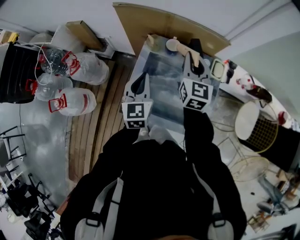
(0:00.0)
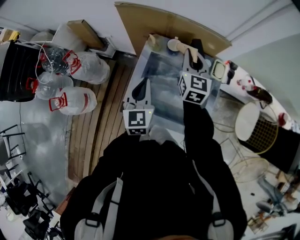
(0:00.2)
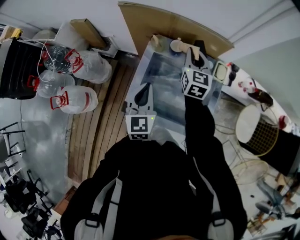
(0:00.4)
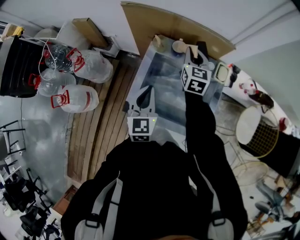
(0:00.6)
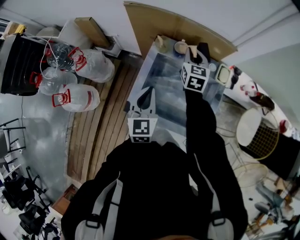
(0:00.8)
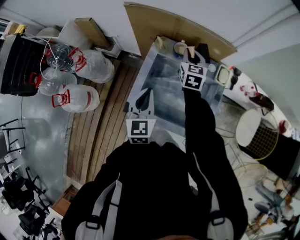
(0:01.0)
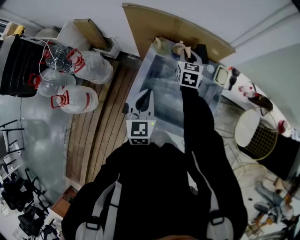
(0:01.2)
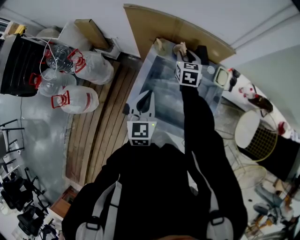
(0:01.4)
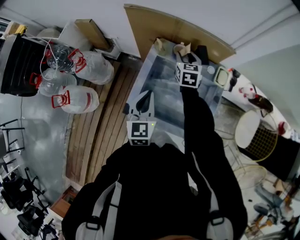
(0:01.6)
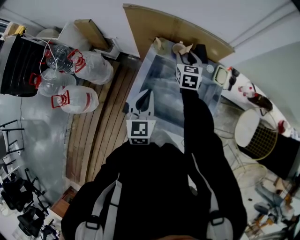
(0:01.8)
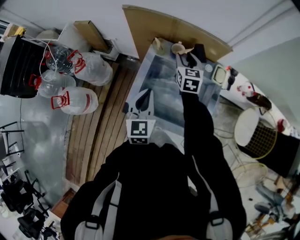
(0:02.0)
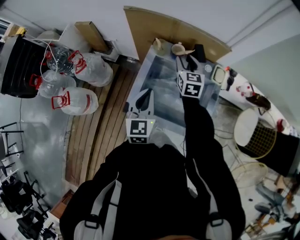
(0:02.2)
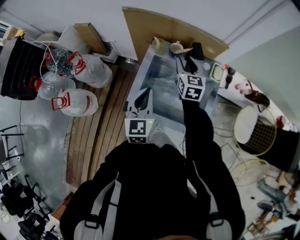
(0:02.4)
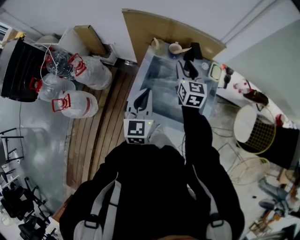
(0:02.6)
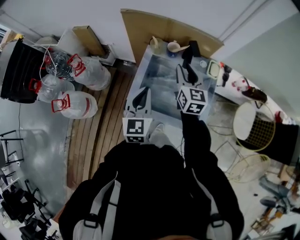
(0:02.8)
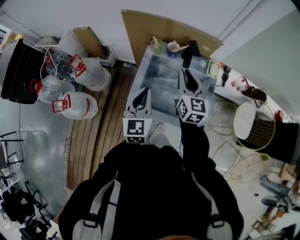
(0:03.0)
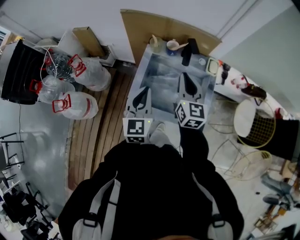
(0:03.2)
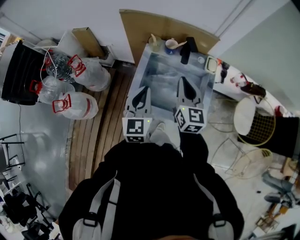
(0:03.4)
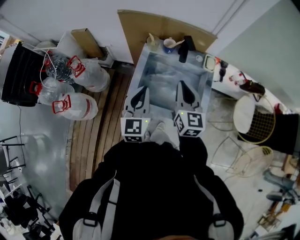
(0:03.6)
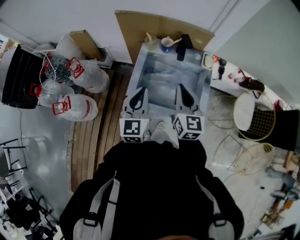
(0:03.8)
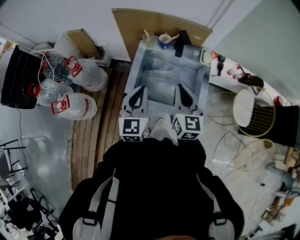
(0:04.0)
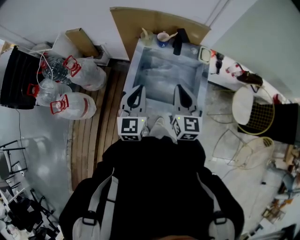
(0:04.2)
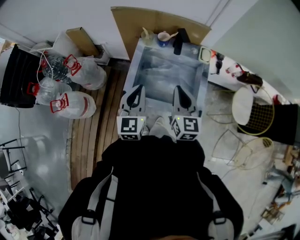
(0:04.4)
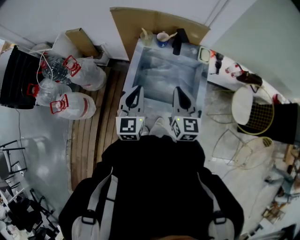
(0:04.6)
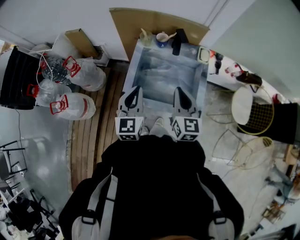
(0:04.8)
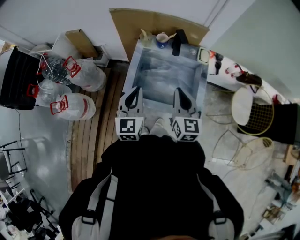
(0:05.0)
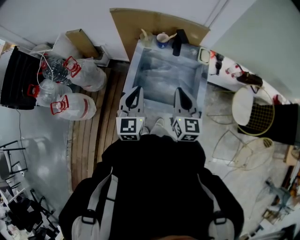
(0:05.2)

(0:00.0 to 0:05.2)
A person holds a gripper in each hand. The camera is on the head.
0:00.0 - 0:01.8: The right gripper shifts about 10 cm downward and forward, and opens, while the left gripper moves backward, about 5 cm.
0:01.8 - 0:03.4: The right gripper travels backward and upward by approximately 25 cm, swivels approximately 20 degrees, and closes up. Meanwhile the left gripper shifts some 10 cm backward and upward.
0:03.4 - 0:05.2: The right gripper heads backward, covering approximately 10 cm.

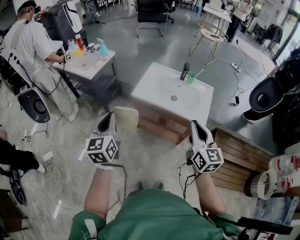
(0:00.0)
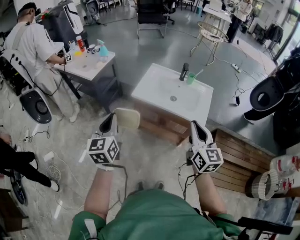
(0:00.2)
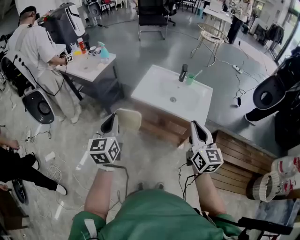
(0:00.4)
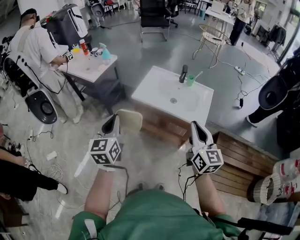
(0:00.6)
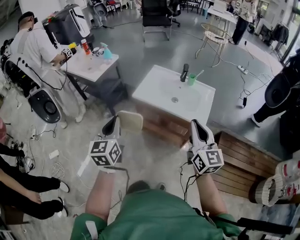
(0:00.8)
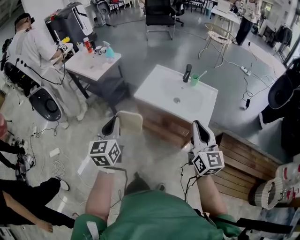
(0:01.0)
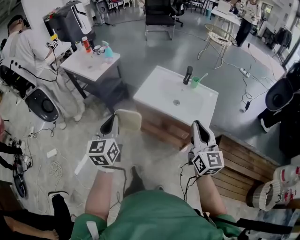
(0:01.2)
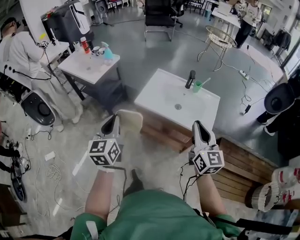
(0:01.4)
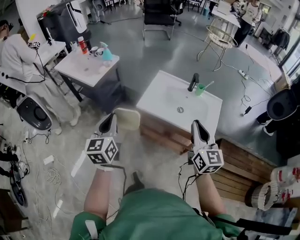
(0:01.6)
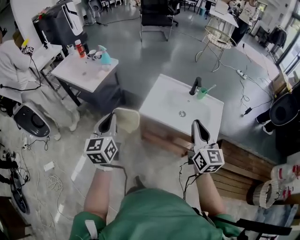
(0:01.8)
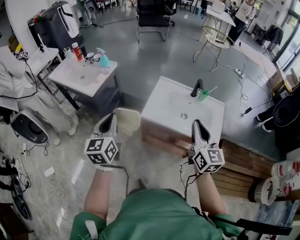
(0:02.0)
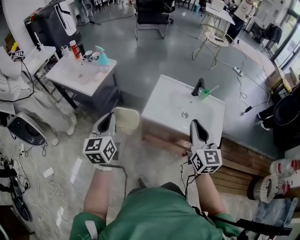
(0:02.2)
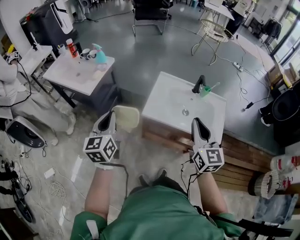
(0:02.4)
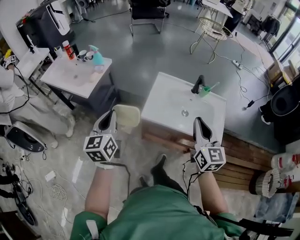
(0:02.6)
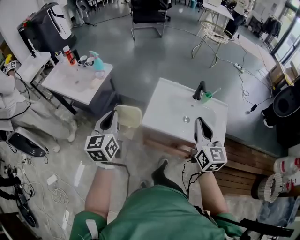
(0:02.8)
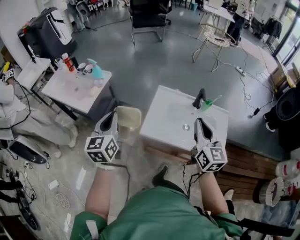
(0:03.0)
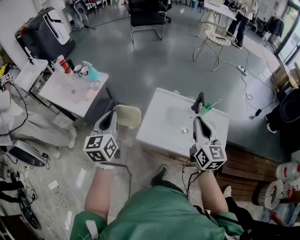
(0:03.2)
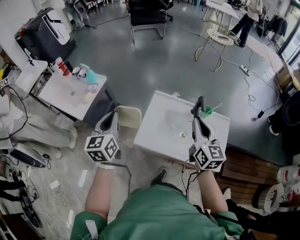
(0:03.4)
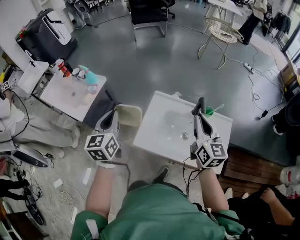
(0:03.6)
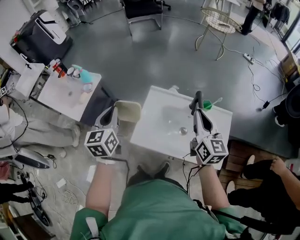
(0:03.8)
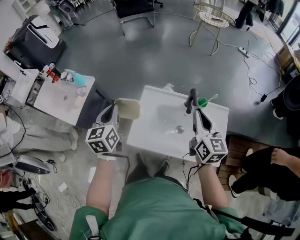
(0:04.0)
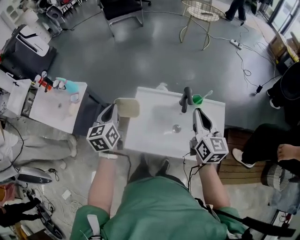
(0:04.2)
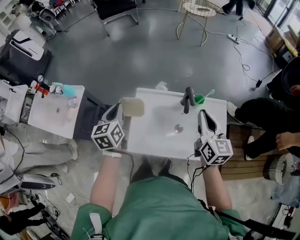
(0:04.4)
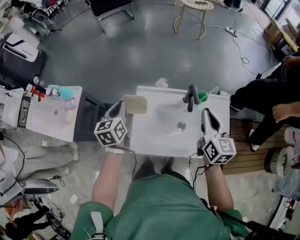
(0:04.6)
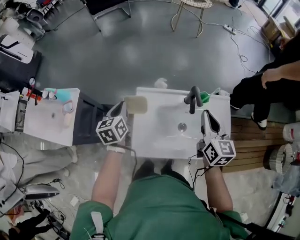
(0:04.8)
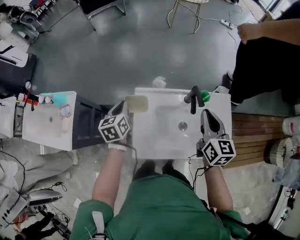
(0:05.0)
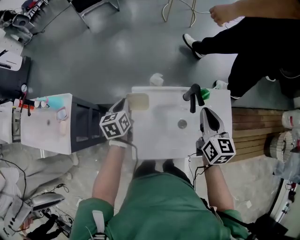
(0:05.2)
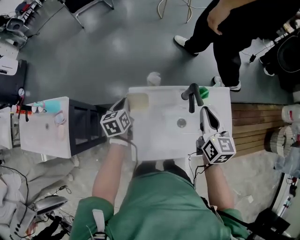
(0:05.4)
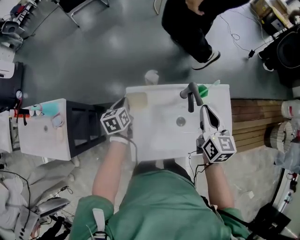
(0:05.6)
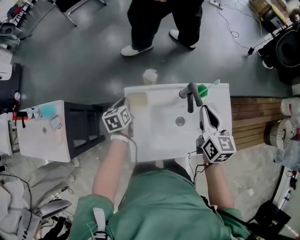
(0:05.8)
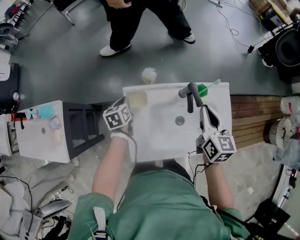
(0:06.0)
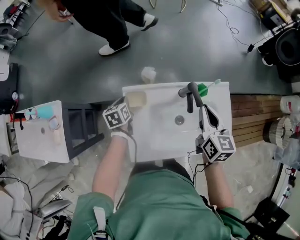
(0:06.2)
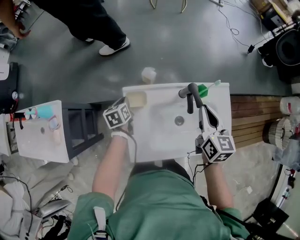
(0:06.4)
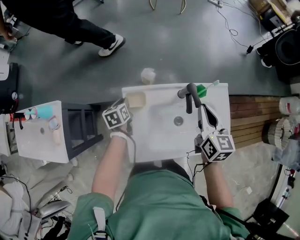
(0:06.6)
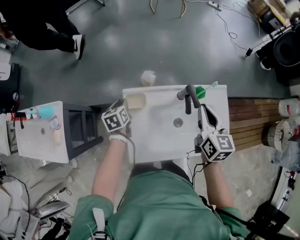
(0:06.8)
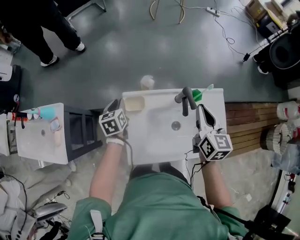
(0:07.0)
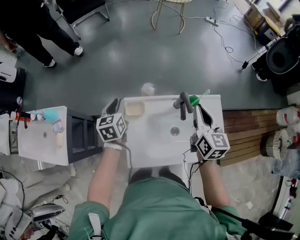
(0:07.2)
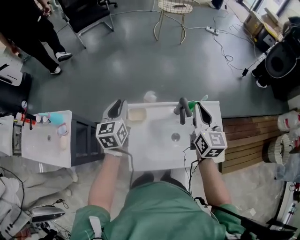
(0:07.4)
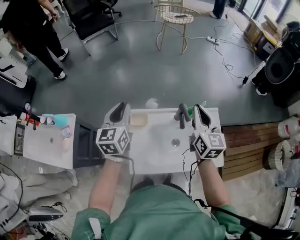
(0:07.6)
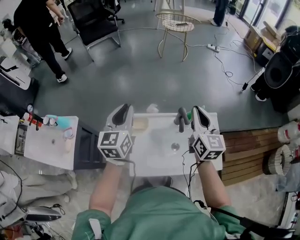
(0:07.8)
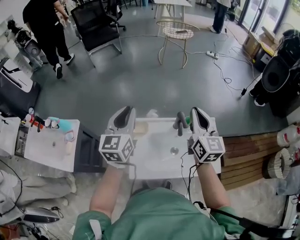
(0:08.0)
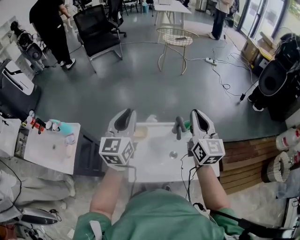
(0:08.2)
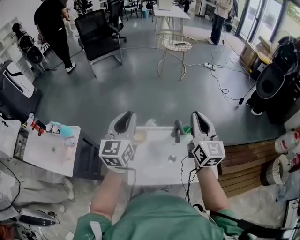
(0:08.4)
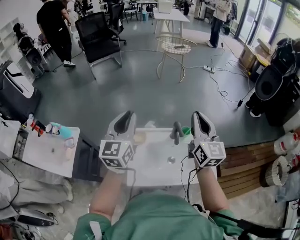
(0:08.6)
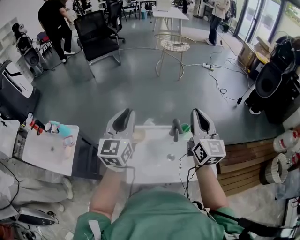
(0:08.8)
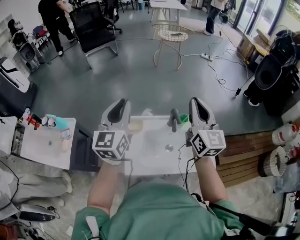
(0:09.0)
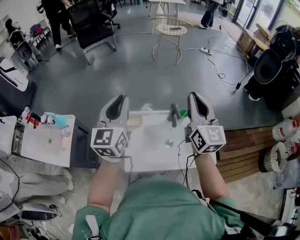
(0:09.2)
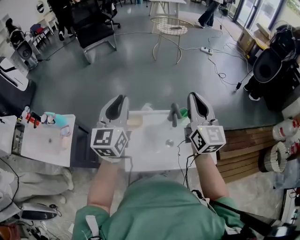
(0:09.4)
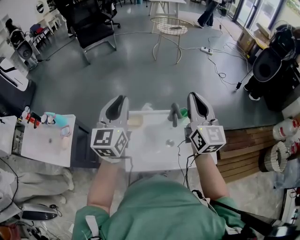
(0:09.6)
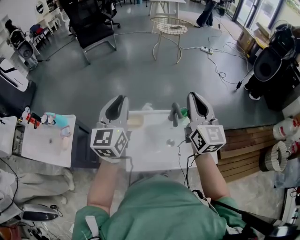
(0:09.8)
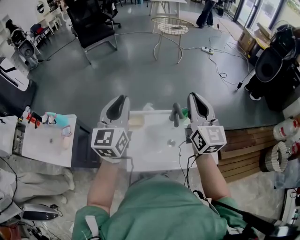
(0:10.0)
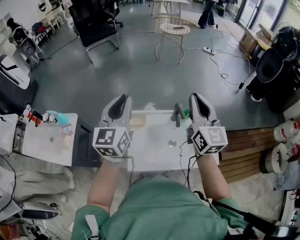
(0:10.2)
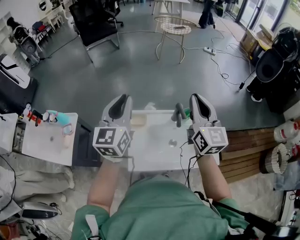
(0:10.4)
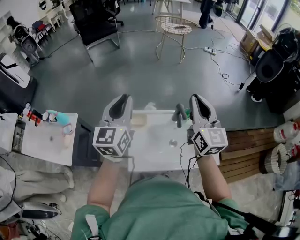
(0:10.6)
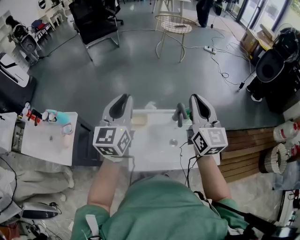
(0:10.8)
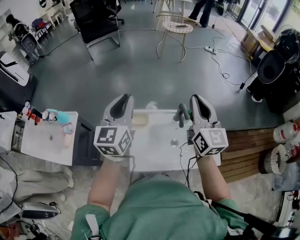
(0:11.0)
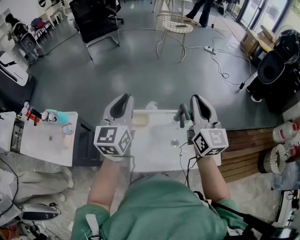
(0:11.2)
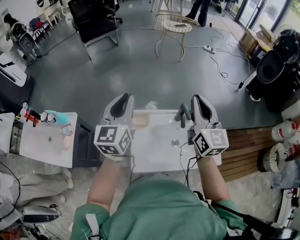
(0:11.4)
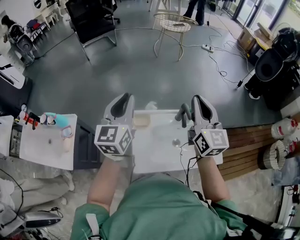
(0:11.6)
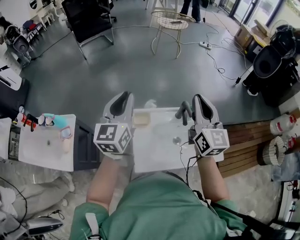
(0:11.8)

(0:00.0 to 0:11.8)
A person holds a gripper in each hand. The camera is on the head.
0:00.0 - 0:01.4: The right gripper travels forward by some 5 cm.
0:01.4 - 0:03.0: Both grippers travel together forward, roughly 30 cm.
0:03.0 - 0:04.4: The two grippers go approximately 30 cm forward and to the right.
0:04.4 - 0:06.0: The right gripper moves downward and forward, roughly 15 cm. Meanwhile the left gripper shifts roughly 30 cm downward and forward, and rotates approximately 30 degrees.
0:06.0 - 0:07.4: The right gripper heads upward, covering about 10 cm; the left gripper shifts roughly 25 cm upward, and swivels roughly 30 degrees.
0:07.4 - 0:08.8: The two grippers go some 20 cm upward and backward. The left gripper swivels approximately 20 degrees.
0:08.8 - 0:10.4: There are only small adjustments of the grippers.
0:10.4 - 0:11.8: Both grippers travel together to the left, some 5 cm.

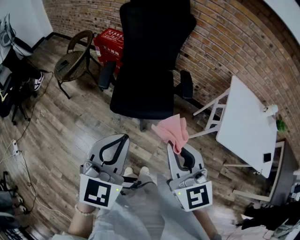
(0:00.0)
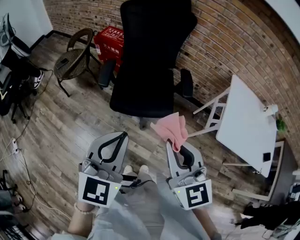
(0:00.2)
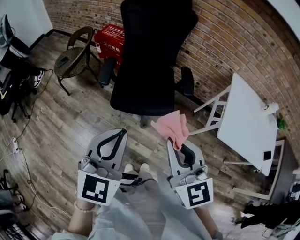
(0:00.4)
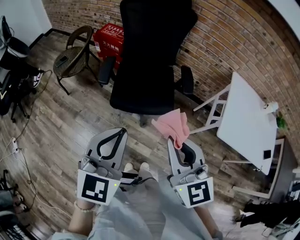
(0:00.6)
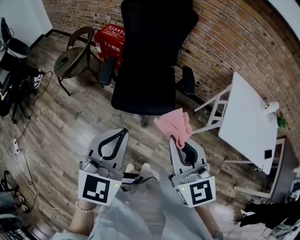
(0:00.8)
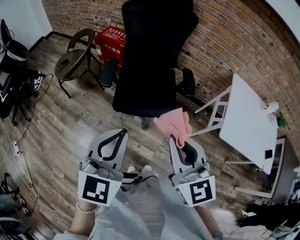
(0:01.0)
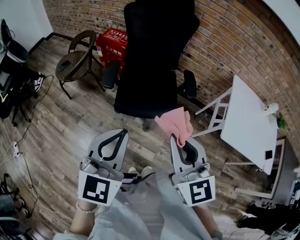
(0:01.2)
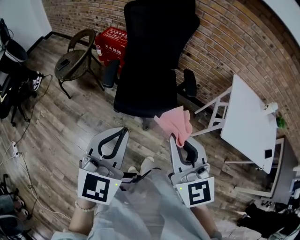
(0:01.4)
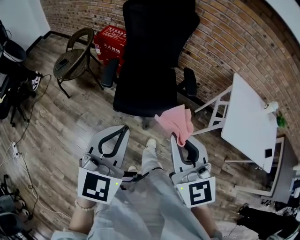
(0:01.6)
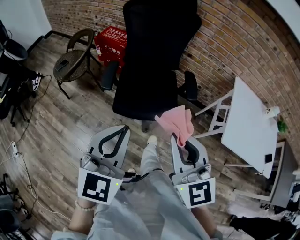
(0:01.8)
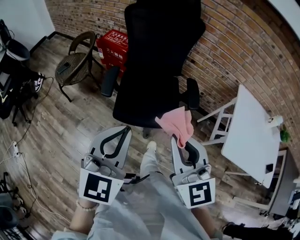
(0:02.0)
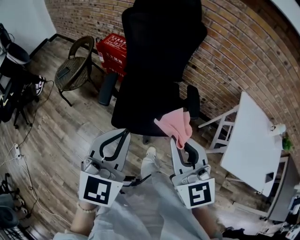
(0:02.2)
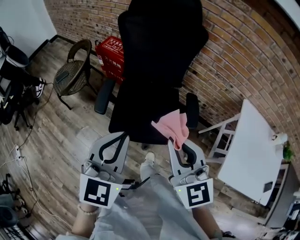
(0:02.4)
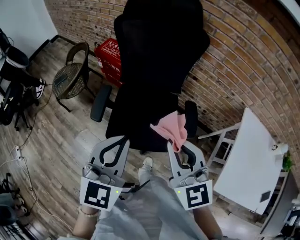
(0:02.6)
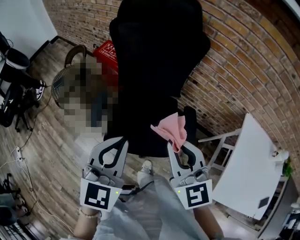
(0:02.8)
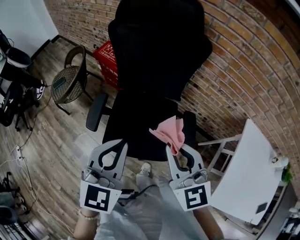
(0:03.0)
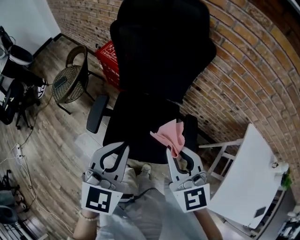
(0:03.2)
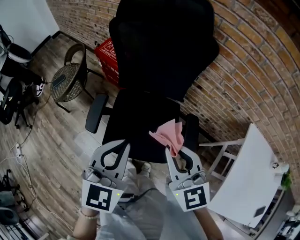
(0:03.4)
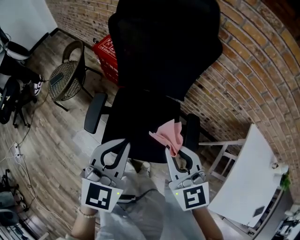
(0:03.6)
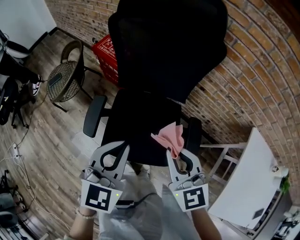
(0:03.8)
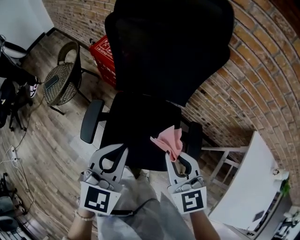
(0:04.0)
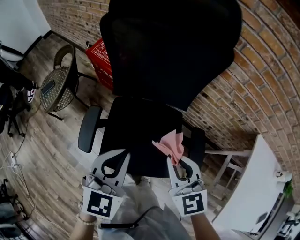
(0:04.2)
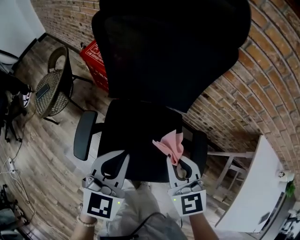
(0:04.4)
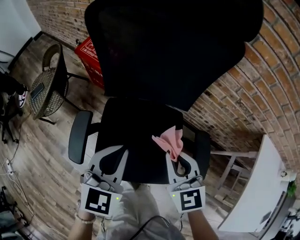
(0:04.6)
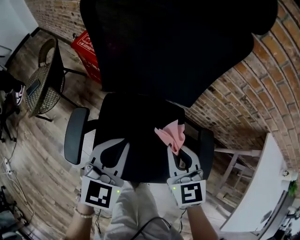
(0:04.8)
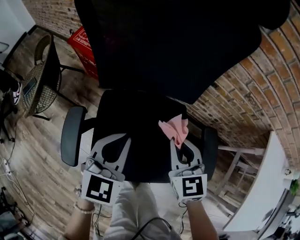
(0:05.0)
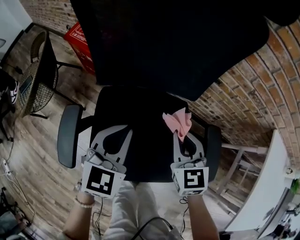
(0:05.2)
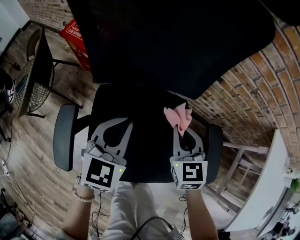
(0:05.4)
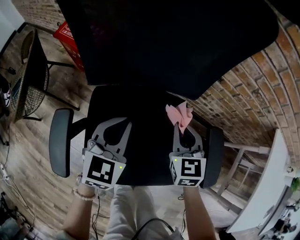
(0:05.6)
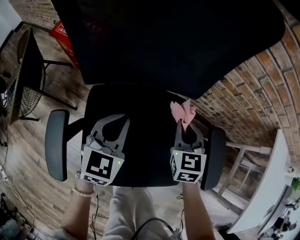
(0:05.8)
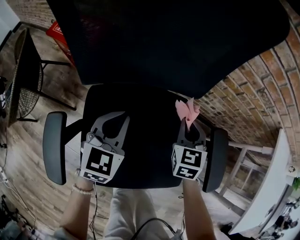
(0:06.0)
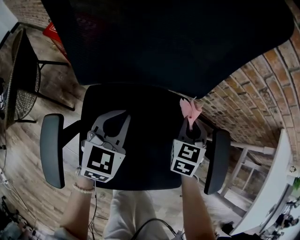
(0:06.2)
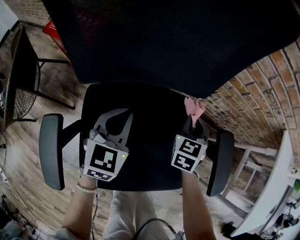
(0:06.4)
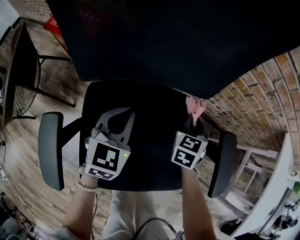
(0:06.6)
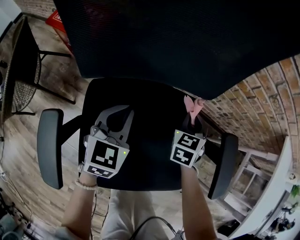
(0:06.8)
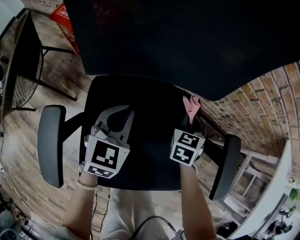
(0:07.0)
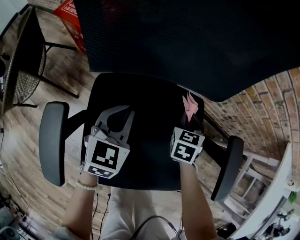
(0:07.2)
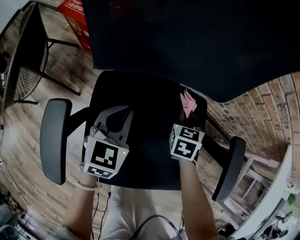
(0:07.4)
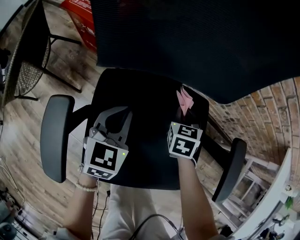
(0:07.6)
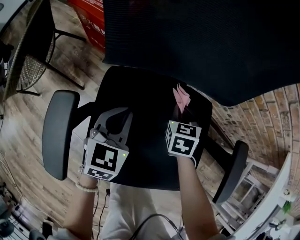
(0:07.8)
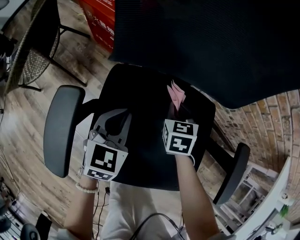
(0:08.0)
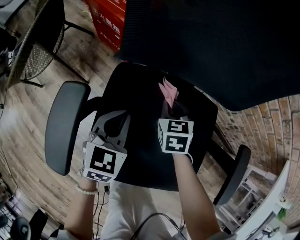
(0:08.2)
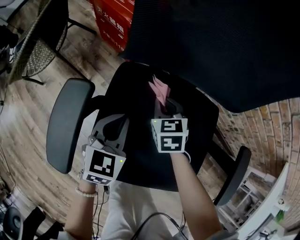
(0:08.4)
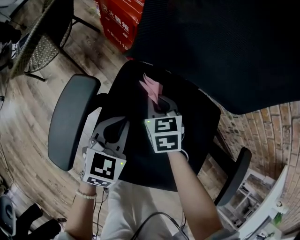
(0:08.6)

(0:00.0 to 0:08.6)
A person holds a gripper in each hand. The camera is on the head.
0:00.0 - 0:01.4: The two grippers go approximately 5 cm to the left.
0:01.4 - 0:02.8: The grippers both shift forward by approximately 30 cm.
0:02.8 - 0:04.4: The left gripper goes approximately 25 cm forward and downward. The right gripper travels downward and forward by some 25 cm.
0:04.4 - 0:05.8: The two grippers go some 30 cm downward and forward. The right gripper rotates roughly 30 degrees.
0:05.8 - 0:07.2: The two grippers go approximately 10 cm downward.
0:07.2 - 0:08.6: The left gripper moves some 10 cm. The right gripper changes place by about 25 cm, and changes its angle by some 40 degrees.
